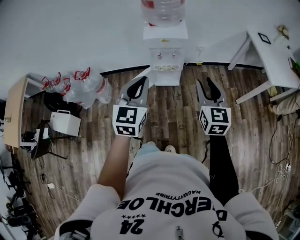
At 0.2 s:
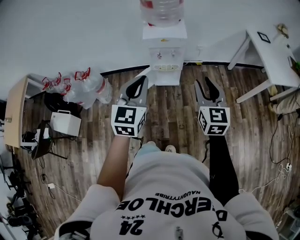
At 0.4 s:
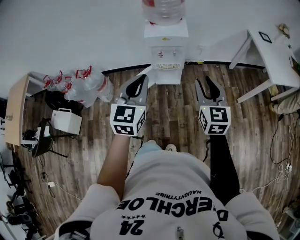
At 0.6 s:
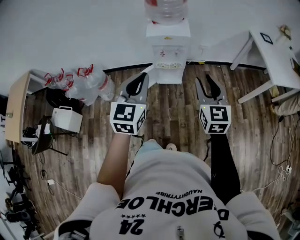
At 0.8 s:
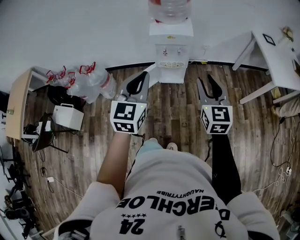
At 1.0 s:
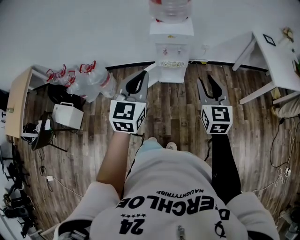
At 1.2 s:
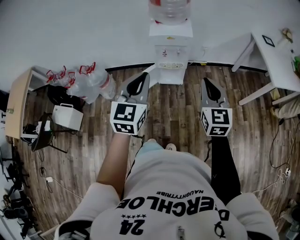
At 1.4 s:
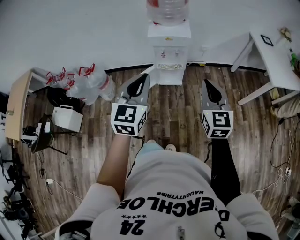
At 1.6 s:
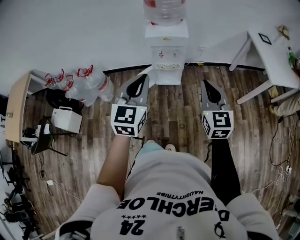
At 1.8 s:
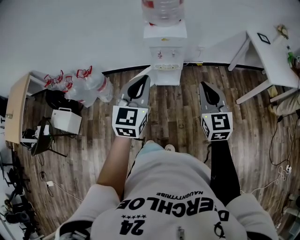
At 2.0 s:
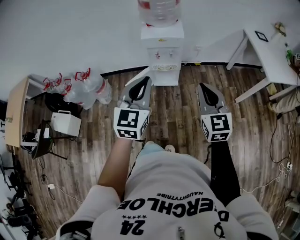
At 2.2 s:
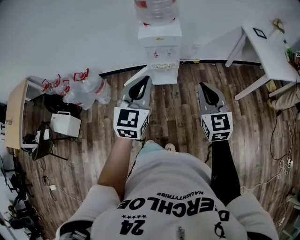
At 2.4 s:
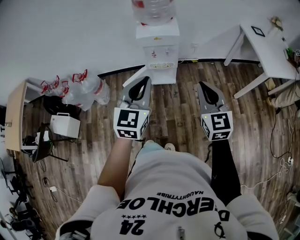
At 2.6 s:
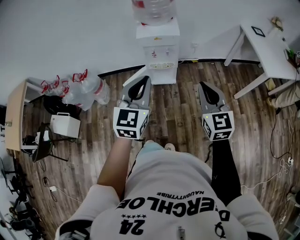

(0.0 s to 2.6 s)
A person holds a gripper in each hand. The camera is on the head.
0.0 s - 1.2 s: The right gripper closes its fingers.
1.2 s - 2.6 s: The left gripper moves to the right, some 5 cm.

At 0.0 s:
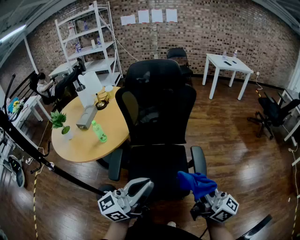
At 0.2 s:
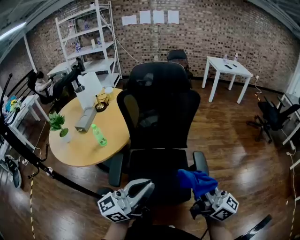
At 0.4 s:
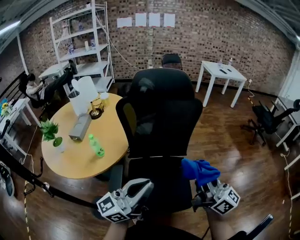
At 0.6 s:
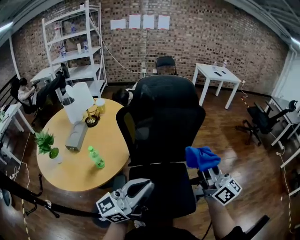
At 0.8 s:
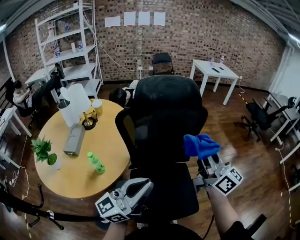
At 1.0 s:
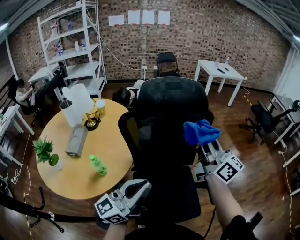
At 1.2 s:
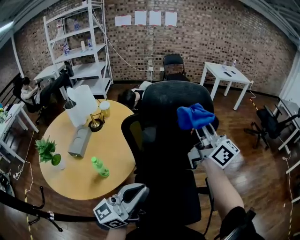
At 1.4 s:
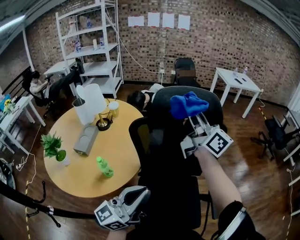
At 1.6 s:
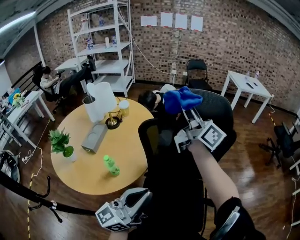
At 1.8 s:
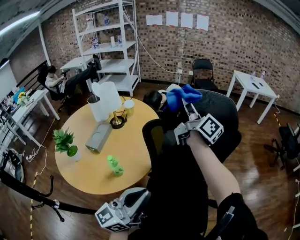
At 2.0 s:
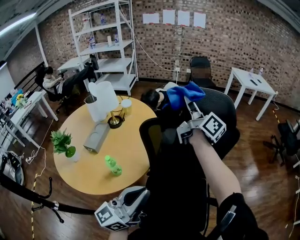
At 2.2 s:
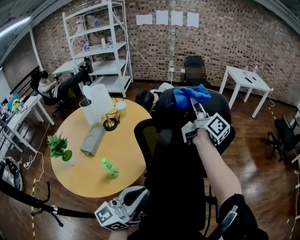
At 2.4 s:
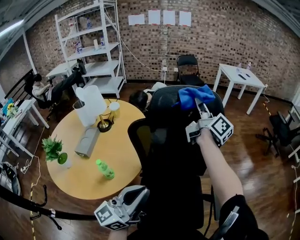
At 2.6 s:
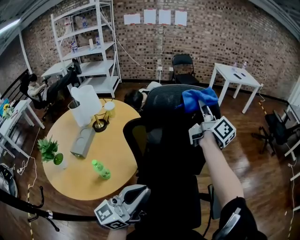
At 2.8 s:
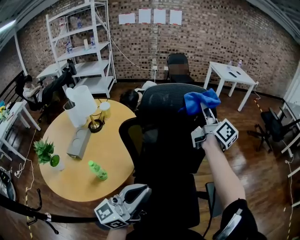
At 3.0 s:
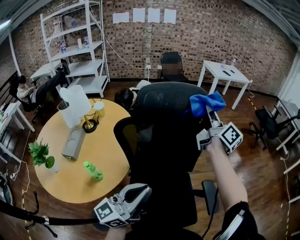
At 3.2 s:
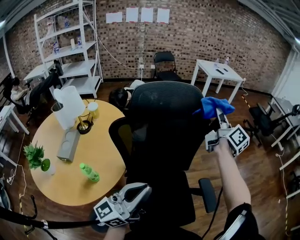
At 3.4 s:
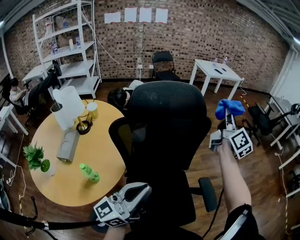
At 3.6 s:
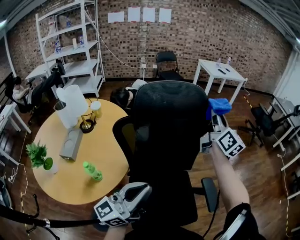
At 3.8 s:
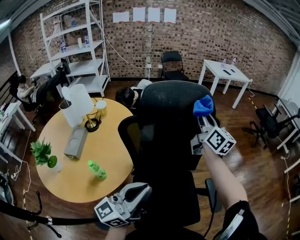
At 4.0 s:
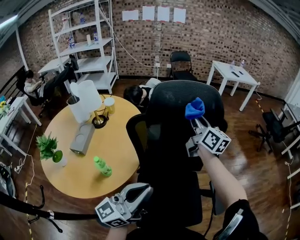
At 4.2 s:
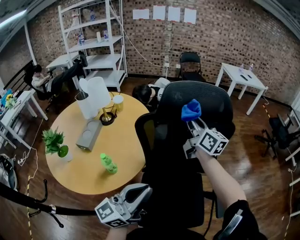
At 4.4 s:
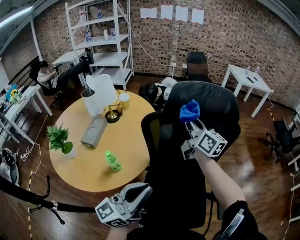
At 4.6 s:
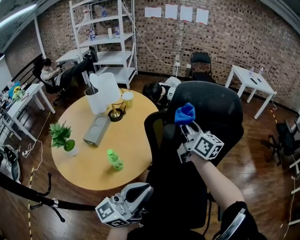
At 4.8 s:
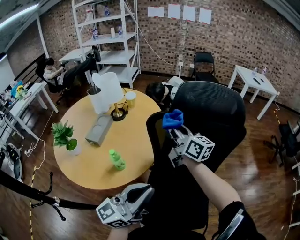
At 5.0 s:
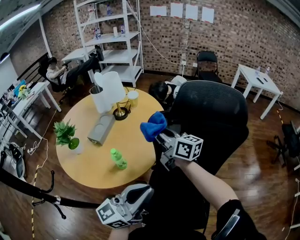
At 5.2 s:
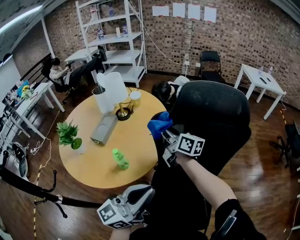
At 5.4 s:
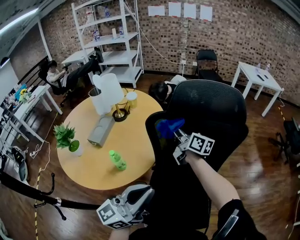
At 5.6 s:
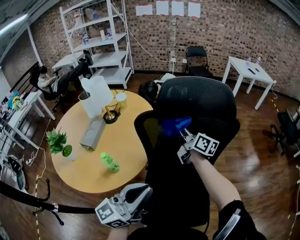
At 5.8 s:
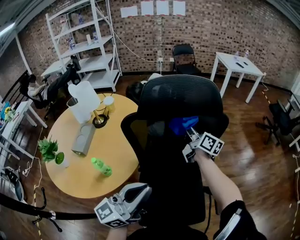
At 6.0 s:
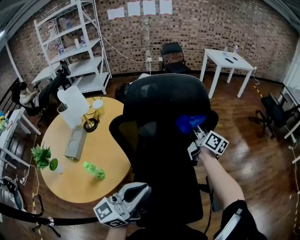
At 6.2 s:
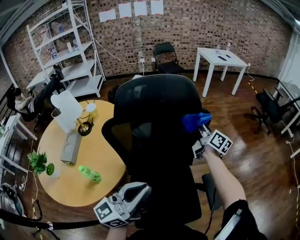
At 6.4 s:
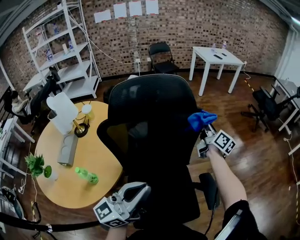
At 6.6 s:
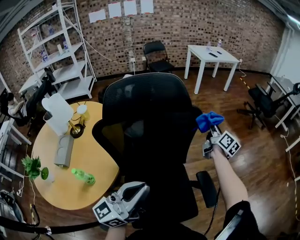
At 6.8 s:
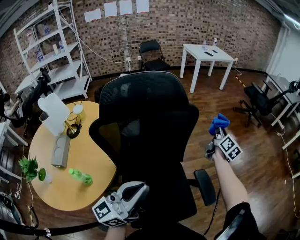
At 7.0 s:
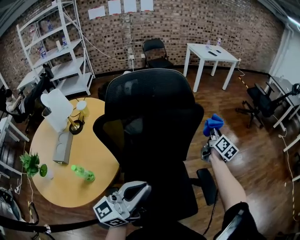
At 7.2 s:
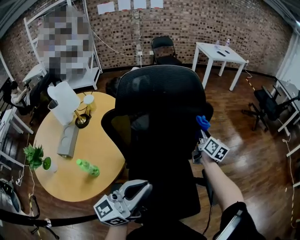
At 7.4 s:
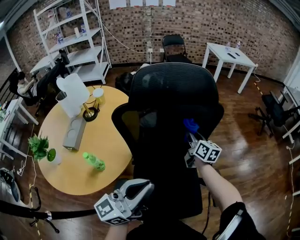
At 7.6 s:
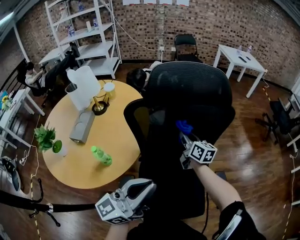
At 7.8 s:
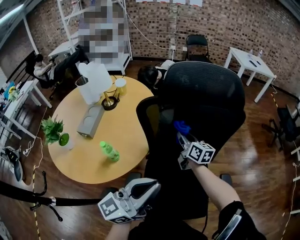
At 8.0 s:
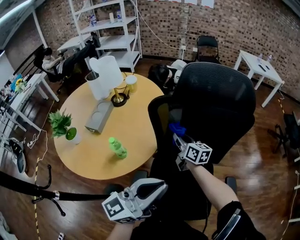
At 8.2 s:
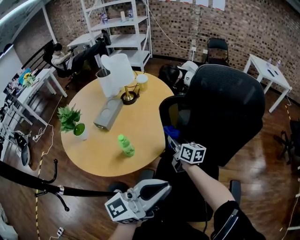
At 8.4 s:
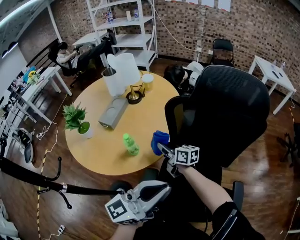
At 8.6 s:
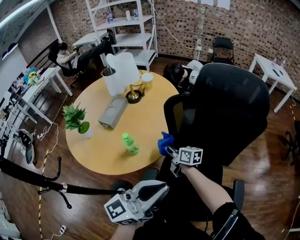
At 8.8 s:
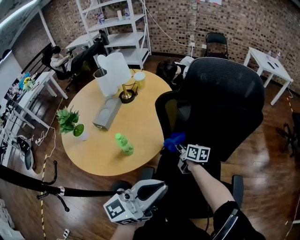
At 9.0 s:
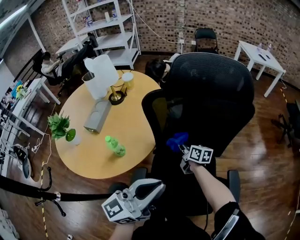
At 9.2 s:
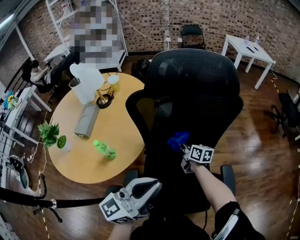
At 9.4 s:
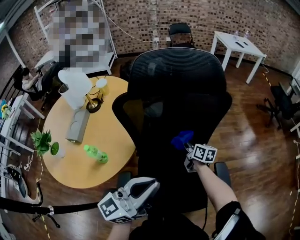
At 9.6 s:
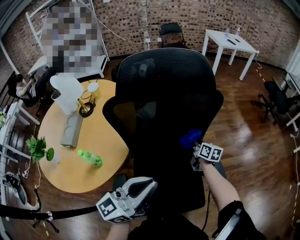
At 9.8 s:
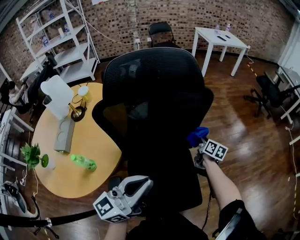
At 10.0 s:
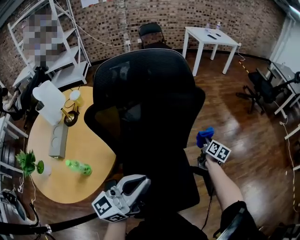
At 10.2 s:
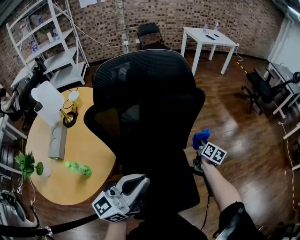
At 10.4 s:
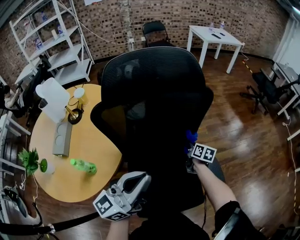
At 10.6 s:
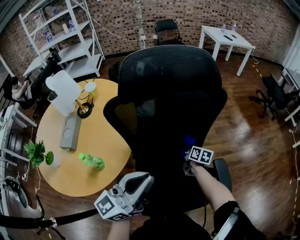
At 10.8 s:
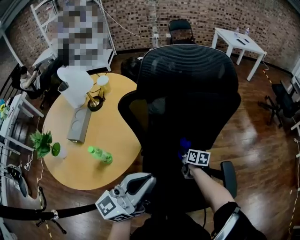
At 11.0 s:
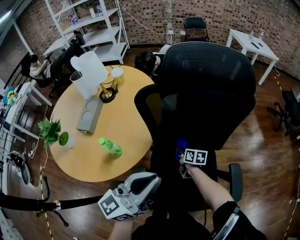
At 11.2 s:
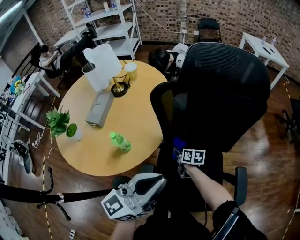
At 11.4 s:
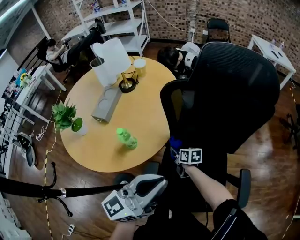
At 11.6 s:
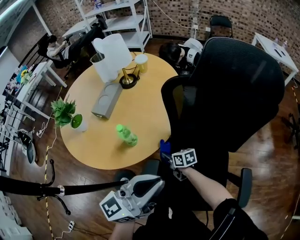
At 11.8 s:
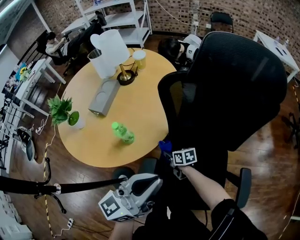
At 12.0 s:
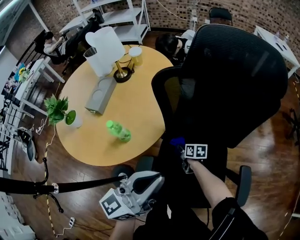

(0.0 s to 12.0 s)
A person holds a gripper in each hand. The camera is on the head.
0.0 s - 1.6 s: The left gripper goes approximately 30 cm to the left and forward; the right gripper heads forward and to the left, covering roughly 60 cm.
1.6 s - 3.0 s: The left gripper moves some 5 cm; the right gripper moves to the right, about 20 cm, and swivels about 30 degrees.
3.0 s - 4.4 s: The left gripper ends up some 5 cm from where it was. Meanwhile the right gripper ends up roughly 20 cm from where it was, and rotates approximately 30 degrees.
4.4 s - 6.0 s: The right gripper changes place by about 25 cm, and rotates about 20 degrees. The left gripper moves about 10 cm.
7.6 s - 9.0 s: The right gripper moves downward and to the left, some 15 cm.
9.0 s - 10.4 s: The right gripper shifts by roughly 25 cm, and turns by some 30 degrees, while the left gripper moves about 10 cm.
10.4 s - 12.0 s: The right gripper moves approximately 35 cm, and turns by approximately 40 degrees. The left gripper changes place by roughly 10 cm.

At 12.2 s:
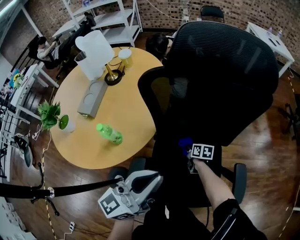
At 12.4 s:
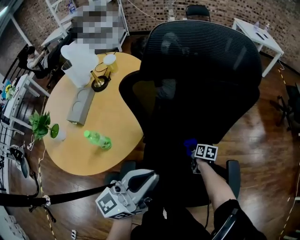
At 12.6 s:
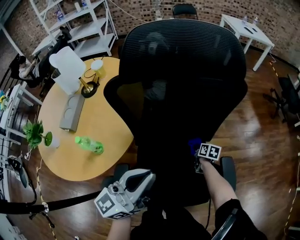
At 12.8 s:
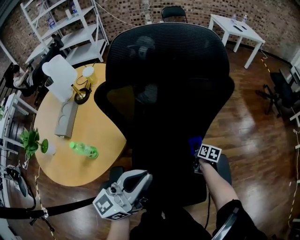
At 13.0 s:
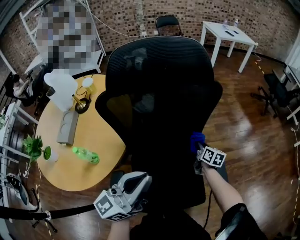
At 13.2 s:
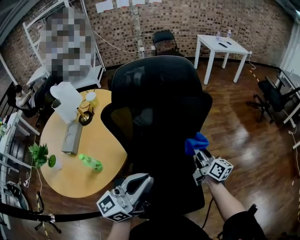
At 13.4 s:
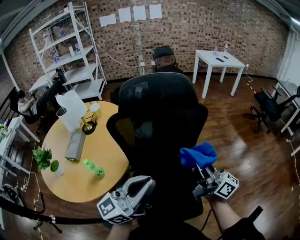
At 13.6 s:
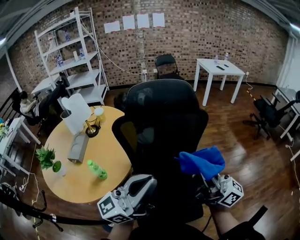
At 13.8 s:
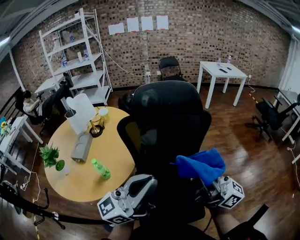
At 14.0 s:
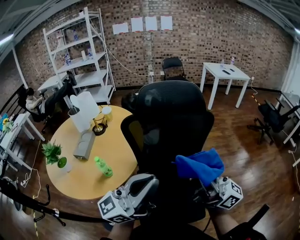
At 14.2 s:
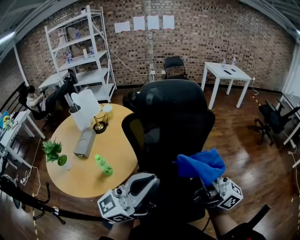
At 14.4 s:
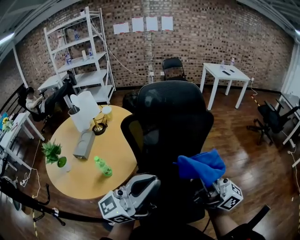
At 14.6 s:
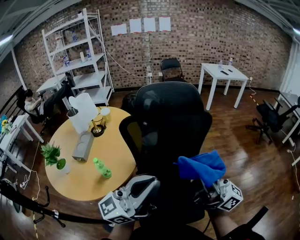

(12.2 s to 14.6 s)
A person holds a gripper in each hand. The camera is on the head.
12.2 s - 13.4 s: The left gripper travels upward and to the right by approximately 15 cm, and swivels roughly 20 degrees, while the right gripper travels upward by some 50 cm, and points its fingers approximately 70 degrees further upward.
13.4 s - 14.6 s: The right gripper moves upward and backward, approximately 15 cm, while the left gripper goes approximately 5 cm upward.

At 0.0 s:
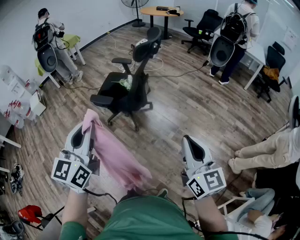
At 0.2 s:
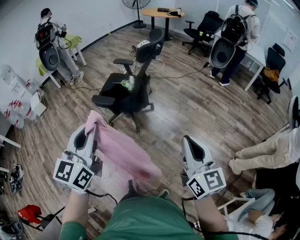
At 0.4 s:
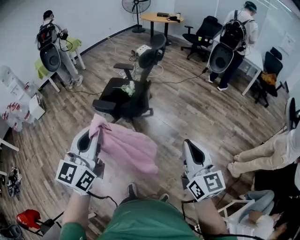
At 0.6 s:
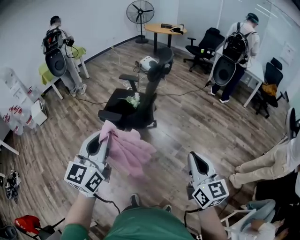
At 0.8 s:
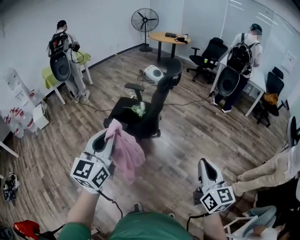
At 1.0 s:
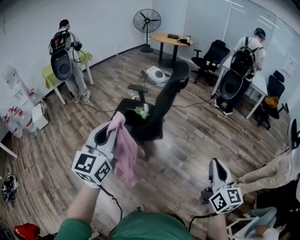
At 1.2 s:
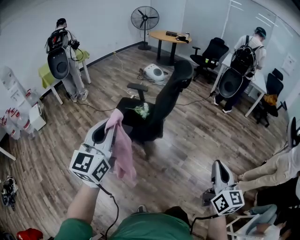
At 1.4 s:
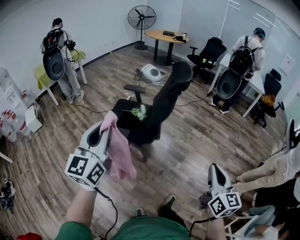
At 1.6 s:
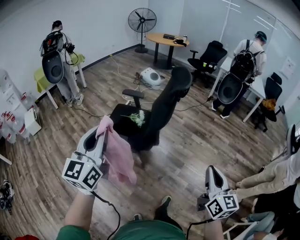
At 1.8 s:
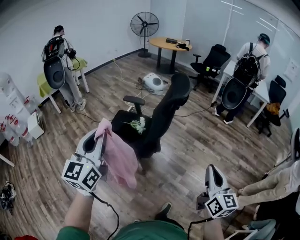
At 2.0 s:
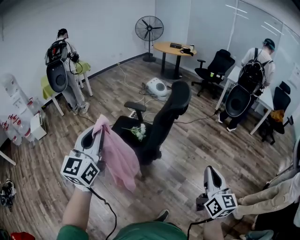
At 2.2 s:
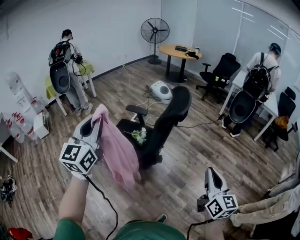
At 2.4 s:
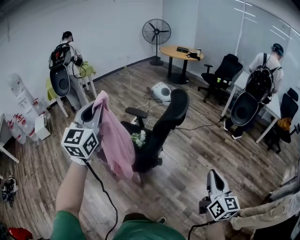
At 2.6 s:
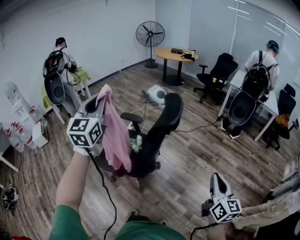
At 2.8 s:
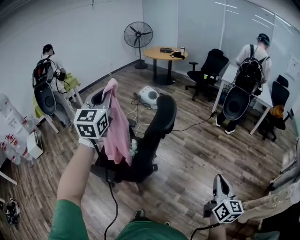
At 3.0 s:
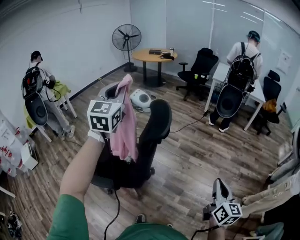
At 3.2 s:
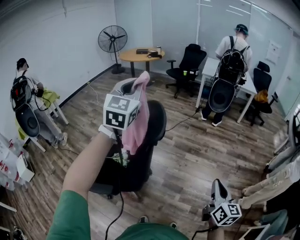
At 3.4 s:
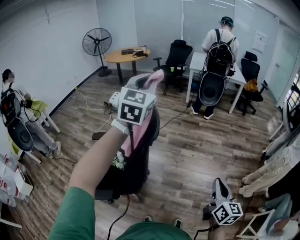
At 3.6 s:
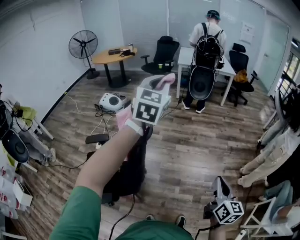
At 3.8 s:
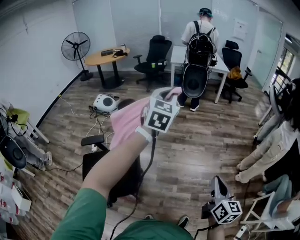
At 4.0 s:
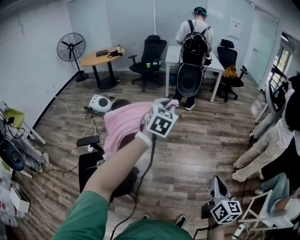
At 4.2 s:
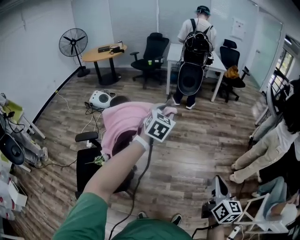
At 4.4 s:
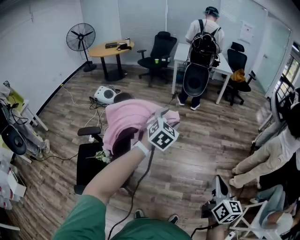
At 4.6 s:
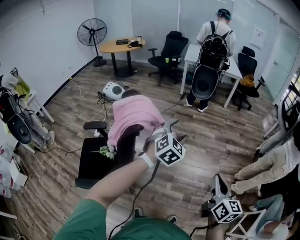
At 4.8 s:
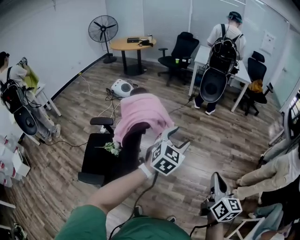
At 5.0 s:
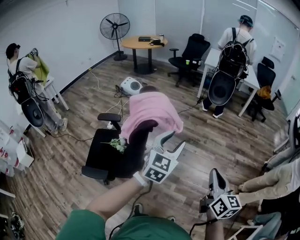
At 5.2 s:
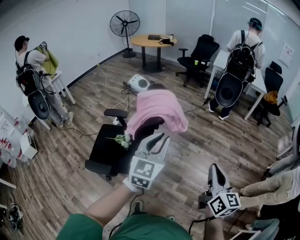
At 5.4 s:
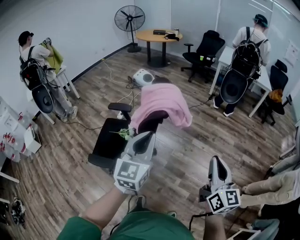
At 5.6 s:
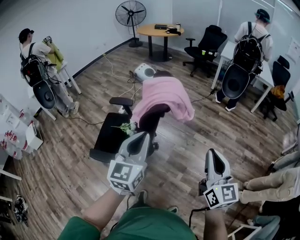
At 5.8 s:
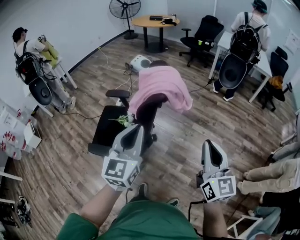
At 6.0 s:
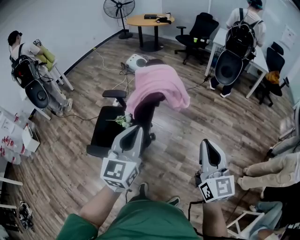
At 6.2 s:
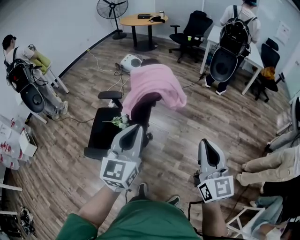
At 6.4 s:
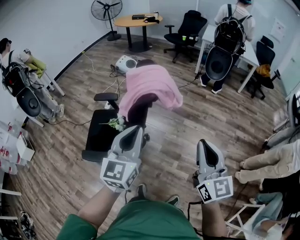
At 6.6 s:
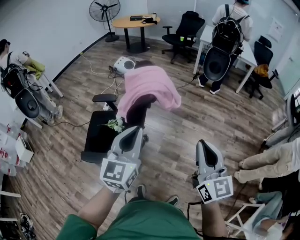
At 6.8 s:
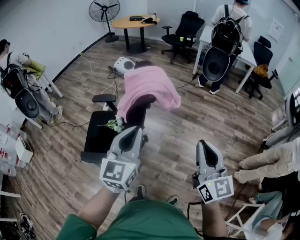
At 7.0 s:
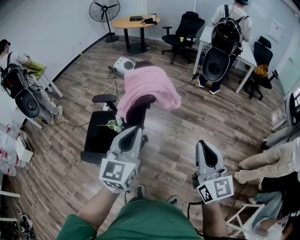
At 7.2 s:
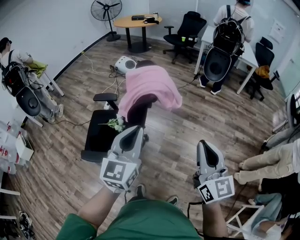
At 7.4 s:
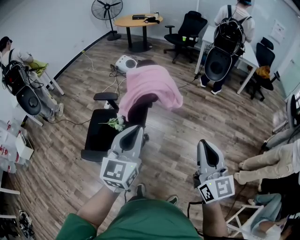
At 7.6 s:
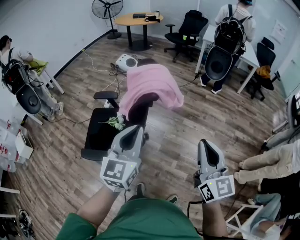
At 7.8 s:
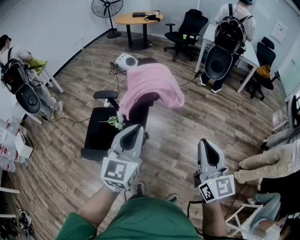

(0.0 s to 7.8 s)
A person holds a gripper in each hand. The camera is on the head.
0.0 s - 1.6 s: The right gripper goes approximately 20 cm forward and to the left; the left gripper travels to the left and forward by some 30 cm.
1.6 s - 3.2 s: The right gripper moves some 25 cm. Meanwhile the left gripper ends up roughly 60 cm from where it was, and swivels approximately 30 degrees.
3.2 s - 4.6 s: The left gripper is displaced to the right and downward by roughly 40 cm, rotates approximately 40 degrees, and opens up, while the right gripper is displaced to the right by about 5 cm.
4.6 s - 6.2 s: The right gripper ends up roughly 15 cm from where it was, and swivels about 30 degrees; the left gripper ends up approximately 30 cm from where it was, turns by approximately 50 degrees, and closes up.
6.2 s - 7.8 s: Neither gripper changes place.
